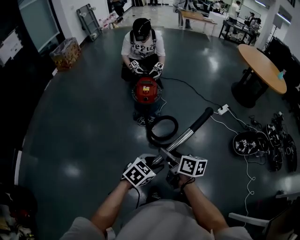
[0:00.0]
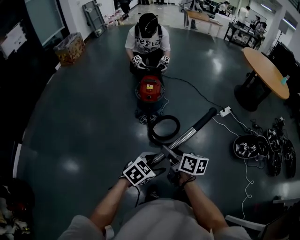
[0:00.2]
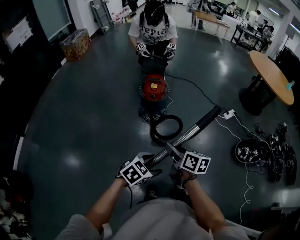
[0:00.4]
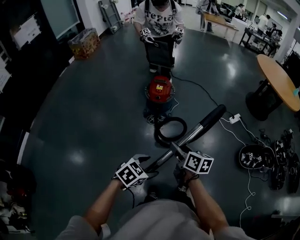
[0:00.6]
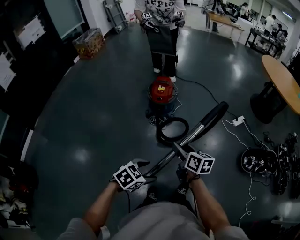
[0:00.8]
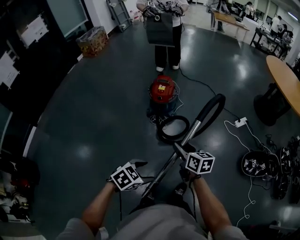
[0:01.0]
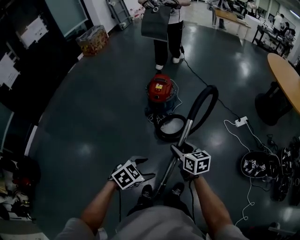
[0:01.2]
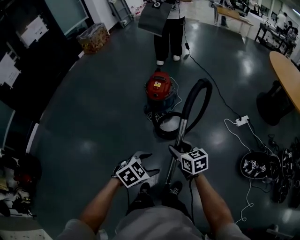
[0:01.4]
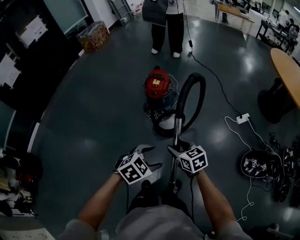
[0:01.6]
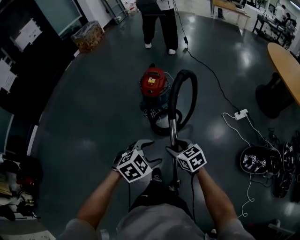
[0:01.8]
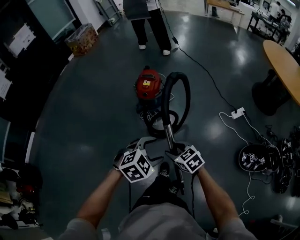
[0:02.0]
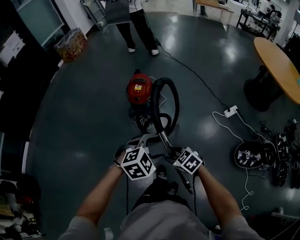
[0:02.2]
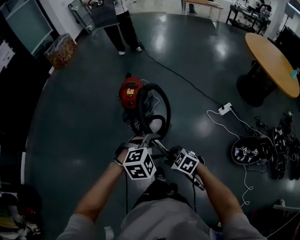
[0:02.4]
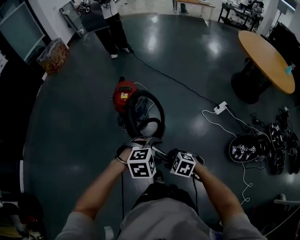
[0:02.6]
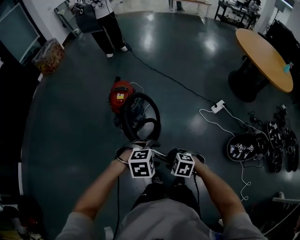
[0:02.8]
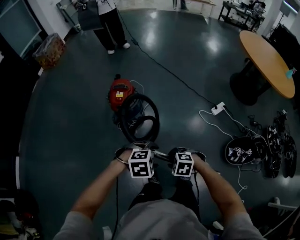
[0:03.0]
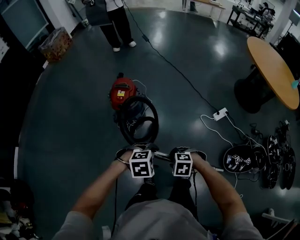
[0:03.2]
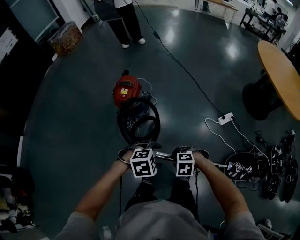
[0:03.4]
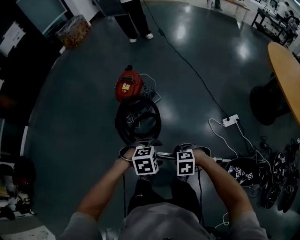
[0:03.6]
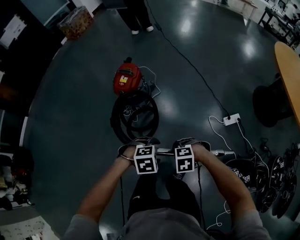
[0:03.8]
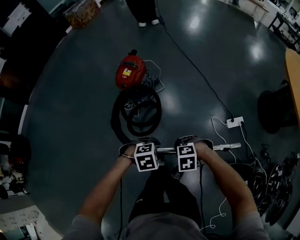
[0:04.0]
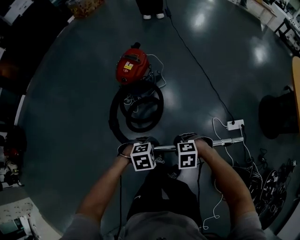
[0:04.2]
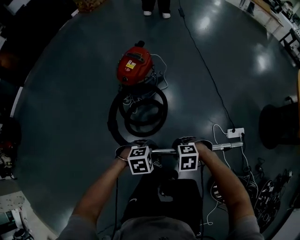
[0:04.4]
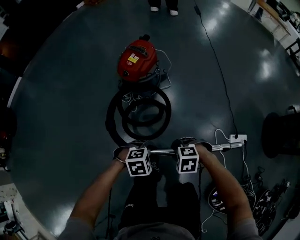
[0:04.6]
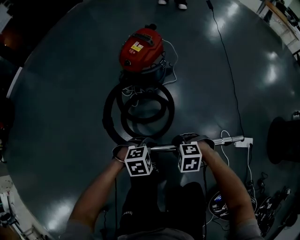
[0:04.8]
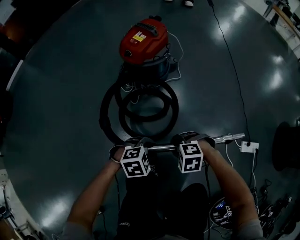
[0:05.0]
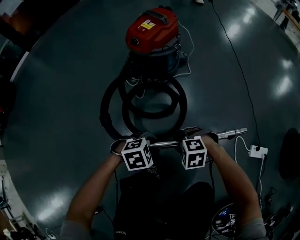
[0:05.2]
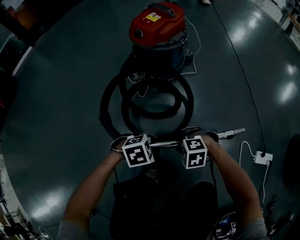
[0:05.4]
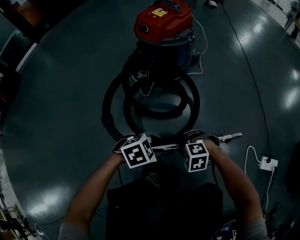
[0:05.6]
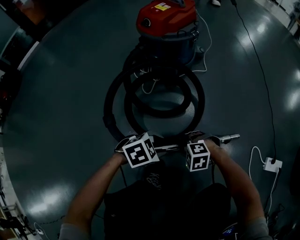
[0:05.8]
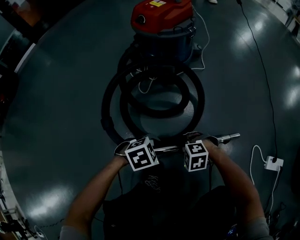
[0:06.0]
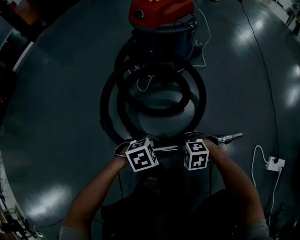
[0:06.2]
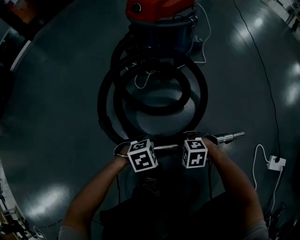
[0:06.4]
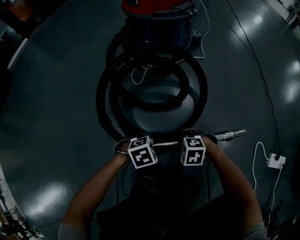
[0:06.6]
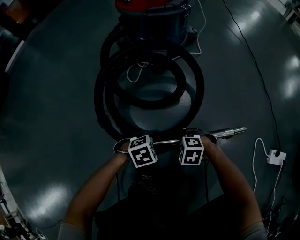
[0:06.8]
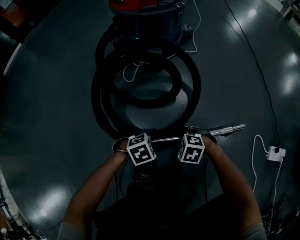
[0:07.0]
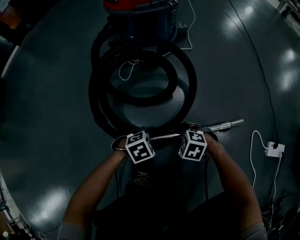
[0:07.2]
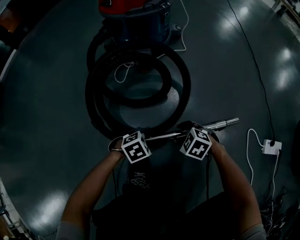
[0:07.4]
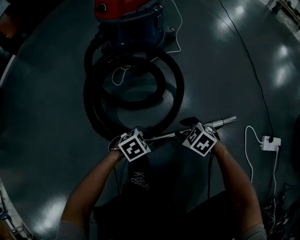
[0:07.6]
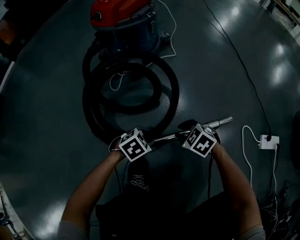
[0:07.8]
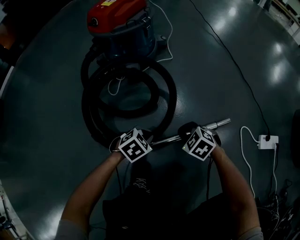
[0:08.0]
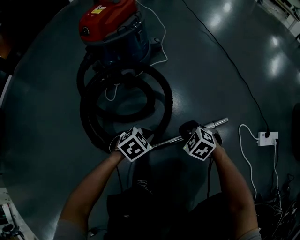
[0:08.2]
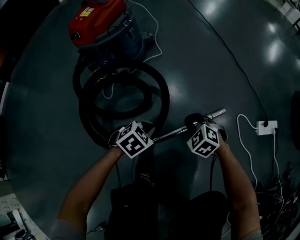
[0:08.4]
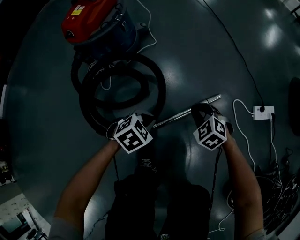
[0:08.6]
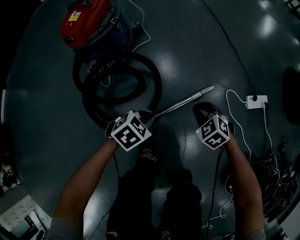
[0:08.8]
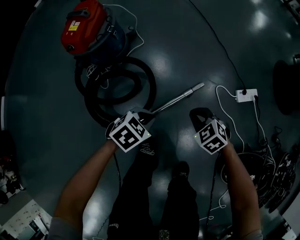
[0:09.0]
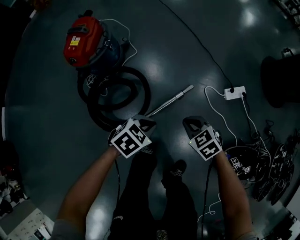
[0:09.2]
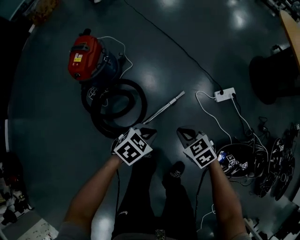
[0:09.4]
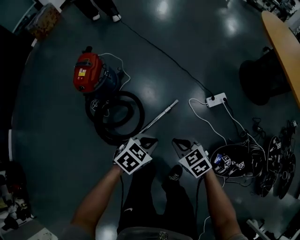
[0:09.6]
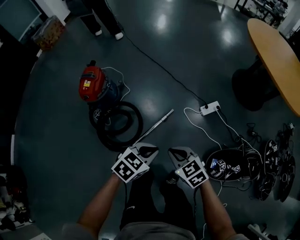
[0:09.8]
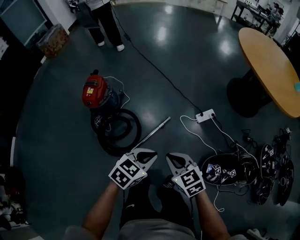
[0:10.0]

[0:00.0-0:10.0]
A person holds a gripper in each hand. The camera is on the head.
0:00.0 to 0:01.4: The left gripper is displaced to the right and forward by about 15 cm, and opens; the right gripper moves forward, to the right and downward, roughly 20 cm, and turns by some 40 degrees.
0:01.4 to 0:02.8: The left gripper shifts by about 20 cm, and rotates around the line of its fingers by some 40 degrees, clockwise from behind, while the right gripper travels downward by approximately 10 cm, and tips its fingers downward by roughly 40 degrees.
0:02.8 to 0:04.2: The right gripper ends up approximately 25 cm from where it was, and changes its angle by roughly 40 degrees. Meanwhile the left gripper moves downward, roughly 20 cm, swivels approximately 30 degrees, and closes.
0:04.2 to 0:05.8: The grippers both shift downward by about 50 cm. The left gripper swivels roughly 30 degrees; the right gripper rotates about 30 degrees.
0:05.8 to 0:07.2: The left gripper is displaced downward by approximately 15 cm. Meanwhile the right gripper heads downward, covering some 10 cm, and rotates roughly 20 degrees.
0:07.2 to 0:08.6: The left gripper moves upward, some 20 cm, and closes up. Meanwhile the right gripper shifts by roughly 25 cm, rotates some 40 degrees, and closes.
0:08.6 to 0:10.0: Both grippers move upward, about 60 cm. The left gripper rotates approximately 20 degrees, while the right gripper rolls clockwise, seen from behind, by about 40 degrees.

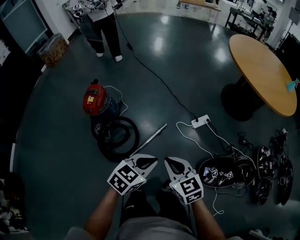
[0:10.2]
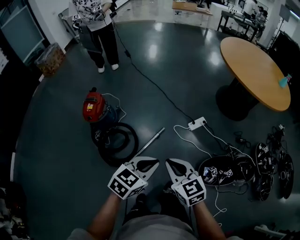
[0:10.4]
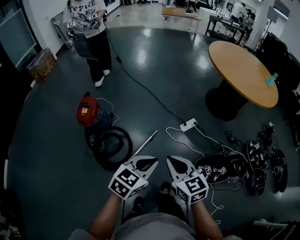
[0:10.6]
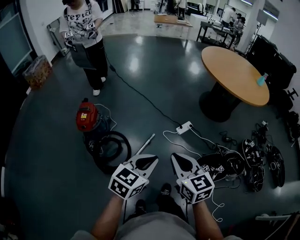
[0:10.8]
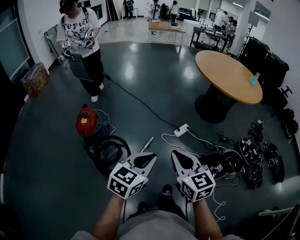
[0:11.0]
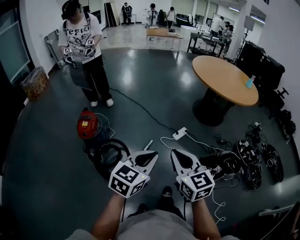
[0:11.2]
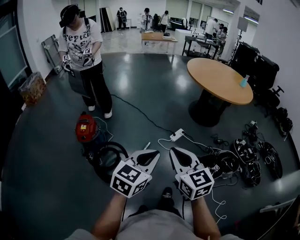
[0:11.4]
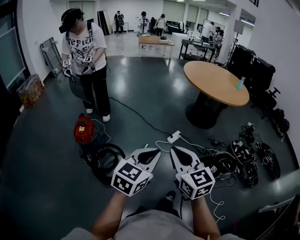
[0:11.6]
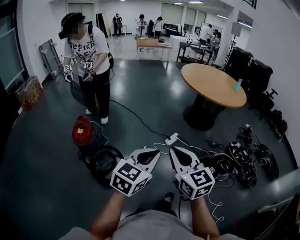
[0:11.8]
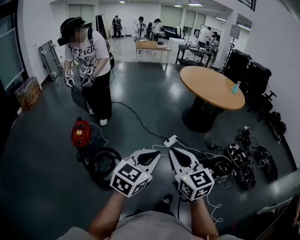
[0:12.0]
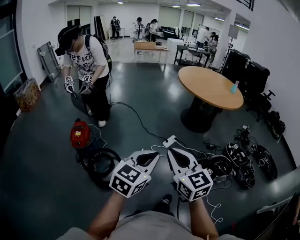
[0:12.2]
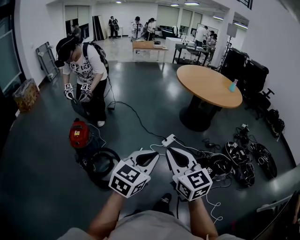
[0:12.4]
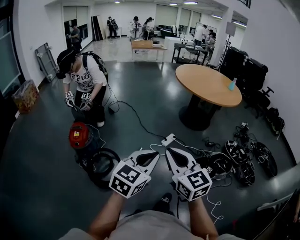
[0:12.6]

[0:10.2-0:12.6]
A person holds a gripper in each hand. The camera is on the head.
0:10.2 to 0:11.4: The grippers both shift upward and backward by roughly 25 cm. The right gripper turns by roughly 30 degrees, while the left gripper swivels approximately 20 degrees.
0:11.4 to 0:12.6: The left gripper changes place by about 5 cm.

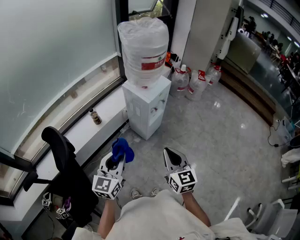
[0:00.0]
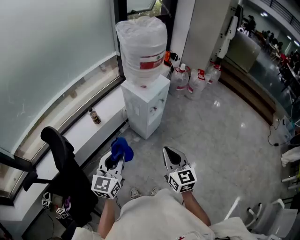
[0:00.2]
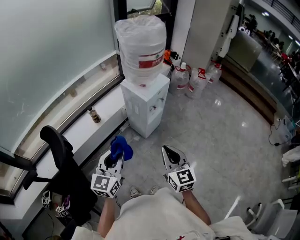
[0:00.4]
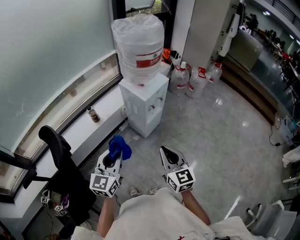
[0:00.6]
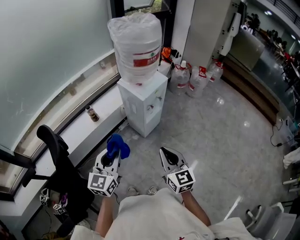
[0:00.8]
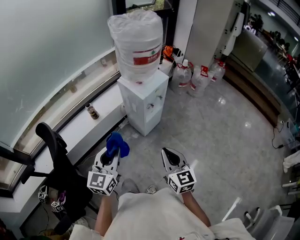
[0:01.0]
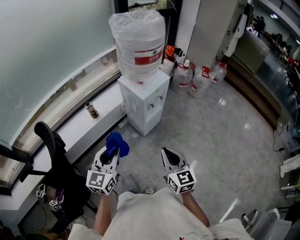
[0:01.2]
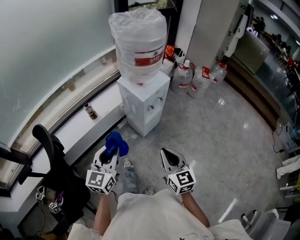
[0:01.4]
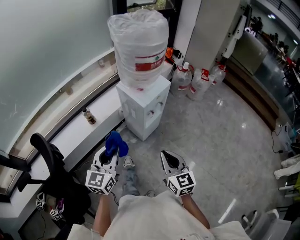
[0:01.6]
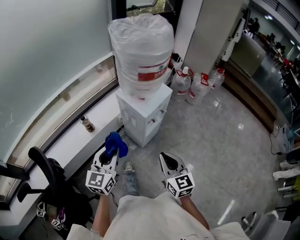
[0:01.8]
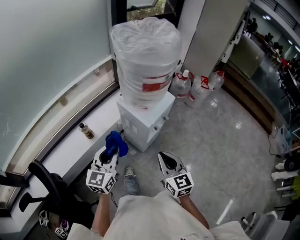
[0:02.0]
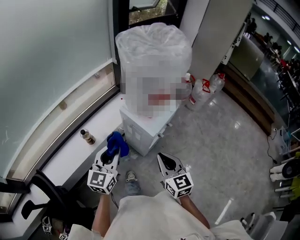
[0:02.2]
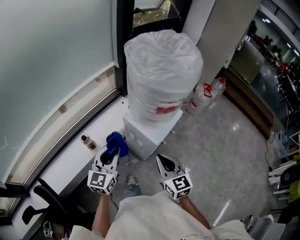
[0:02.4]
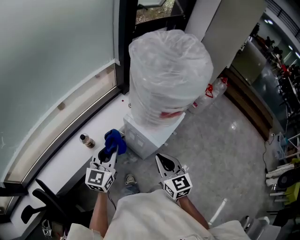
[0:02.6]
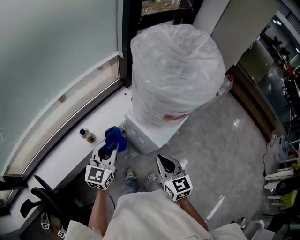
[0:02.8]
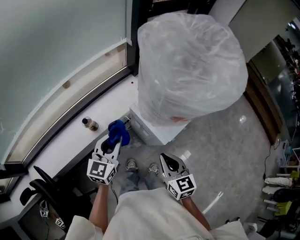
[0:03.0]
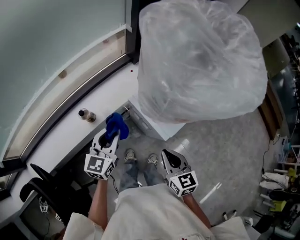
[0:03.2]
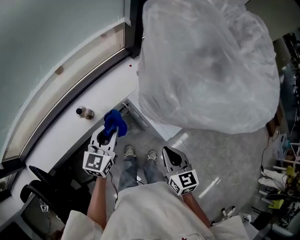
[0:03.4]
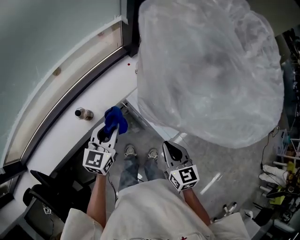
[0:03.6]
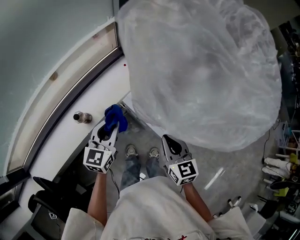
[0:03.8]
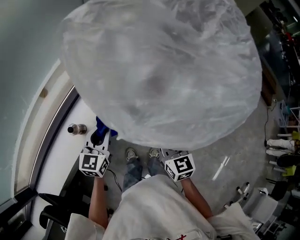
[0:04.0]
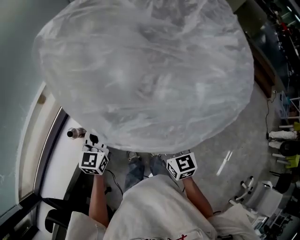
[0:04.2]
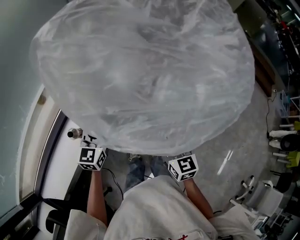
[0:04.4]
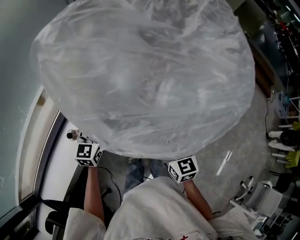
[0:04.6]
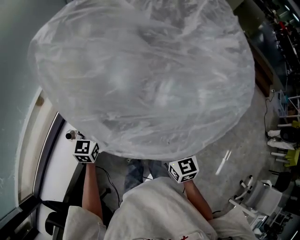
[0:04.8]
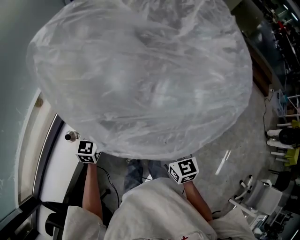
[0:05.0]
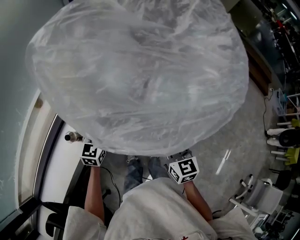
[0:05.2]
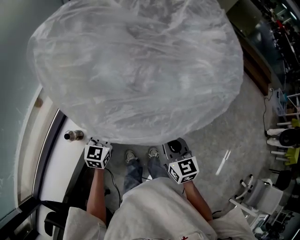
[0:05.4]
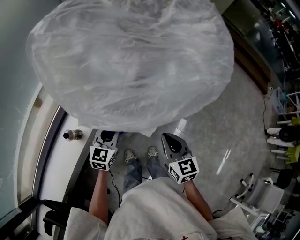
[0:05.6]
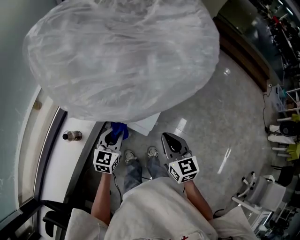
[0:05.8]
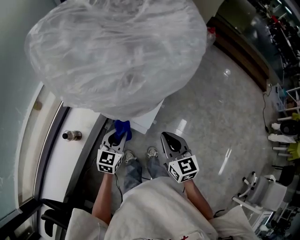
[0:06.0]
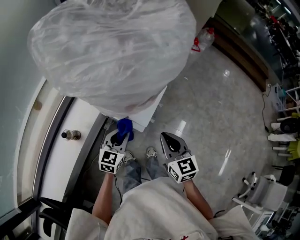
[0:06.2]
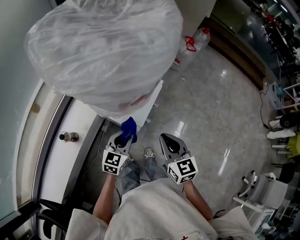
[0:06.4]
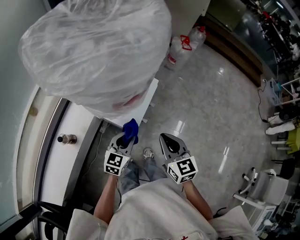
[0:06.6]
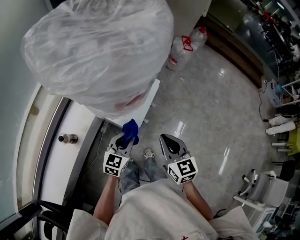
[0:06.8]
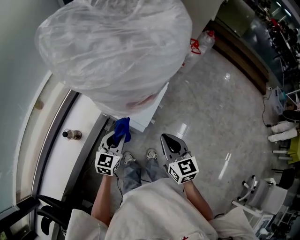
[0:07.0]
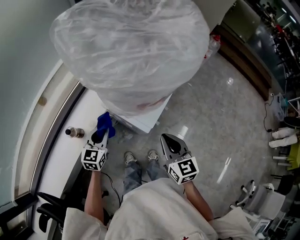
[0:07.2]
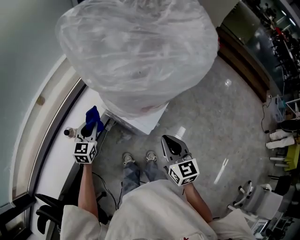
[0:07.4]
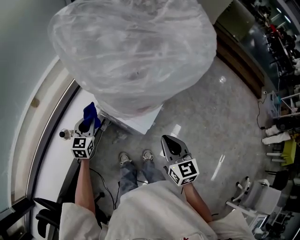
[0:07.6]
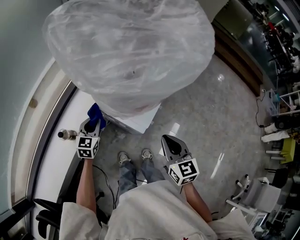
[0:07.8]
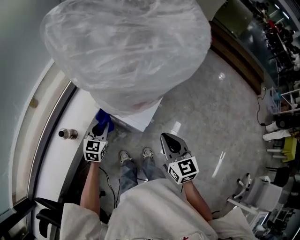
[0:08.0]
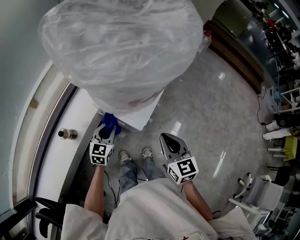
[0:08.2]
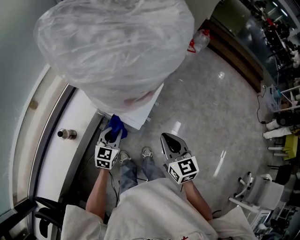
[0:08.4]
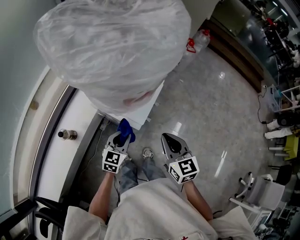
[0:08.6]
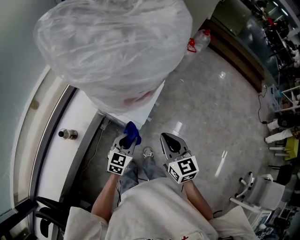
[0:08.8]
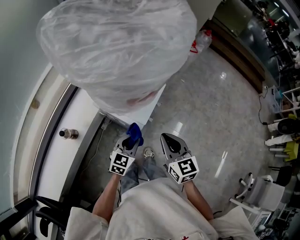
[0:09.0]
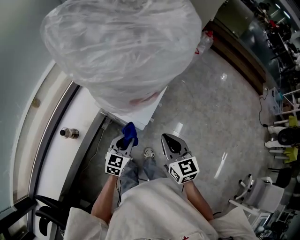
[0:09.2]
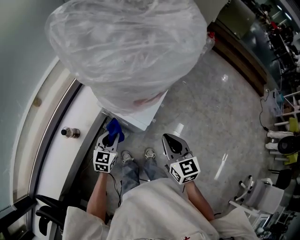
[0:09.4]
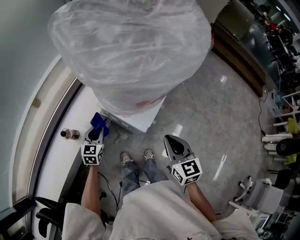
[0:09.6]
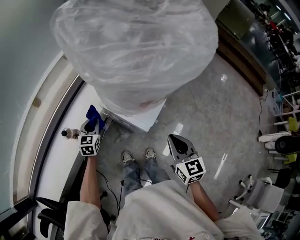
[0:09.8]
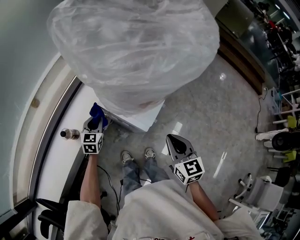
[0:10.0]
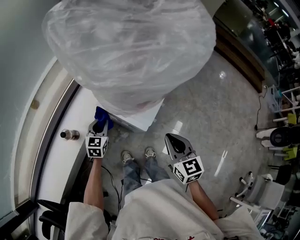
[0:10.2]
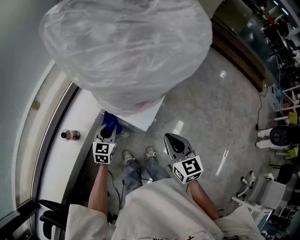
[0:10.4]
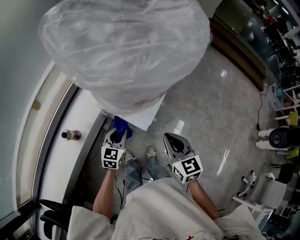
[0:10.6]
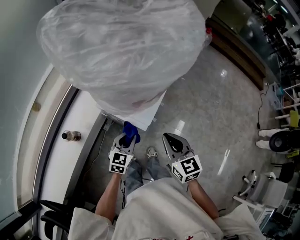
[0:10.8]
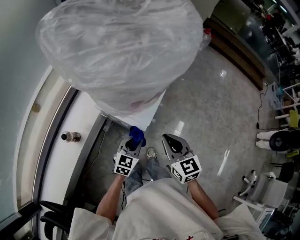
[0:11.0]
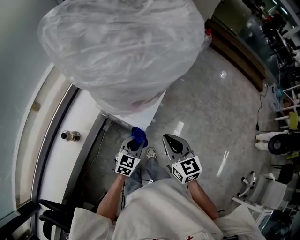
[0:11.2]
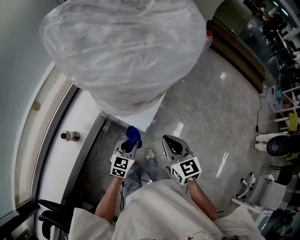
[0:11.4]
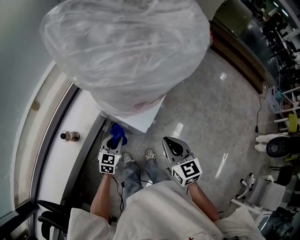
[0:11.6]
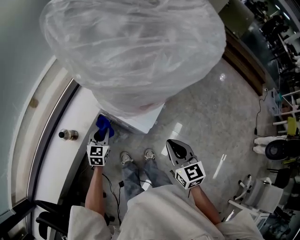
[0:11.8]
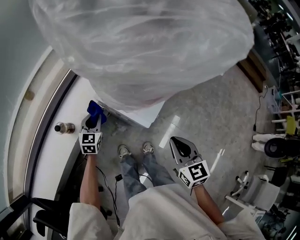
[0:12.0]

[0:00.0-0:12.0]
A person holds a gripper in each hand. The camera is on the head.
0:00.0 to 0:01.6: The two grippers go some 10 cm forward.
0:01.6 to 0:03.0: The grippers both shift forward by approximately 30 cm.
0:03.0 to 0:04.4: The right gripper shifts some 10 cm forward. The left gripper shifts approximately 15 cm forward and downward.
0:04.4 to 0:06.0: The left gripper travels to the right, backward and downward by approximately 15 cm, while the right gripper moves to the right, approximately 5 cm.
0:06.0 to 0:07.6: The left gripper heads to the left, covering roughly 15 cm.
0:07.6 to 0:09.0: The left gripper moves to the right and backward, roughly 25 cm, and swivels approximately 20 degrees.
0:09.0 to 0:10.4: The left gripper heads to the left and forward, covering roughly 15 cm.
0:10.4 to 0:12.0: The left gripper goes to the right and returns, roughly 15 cm each way.
